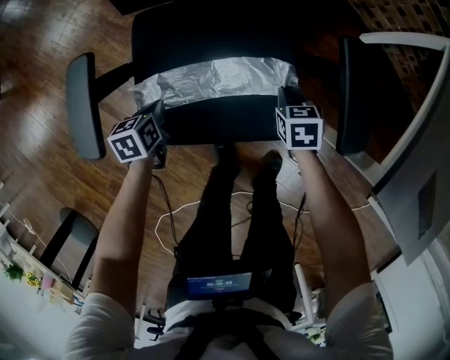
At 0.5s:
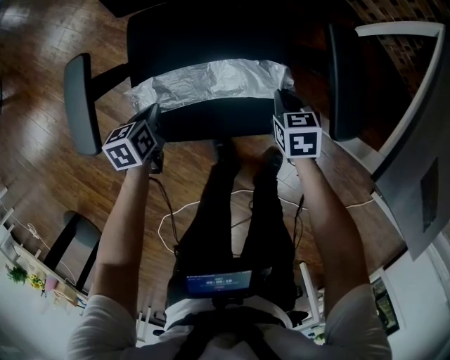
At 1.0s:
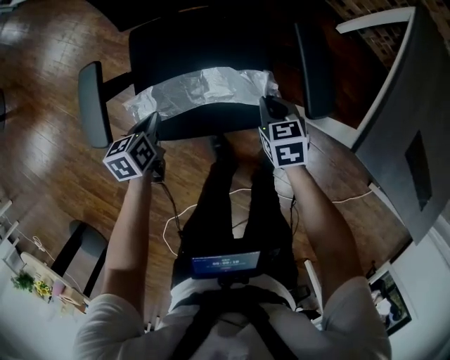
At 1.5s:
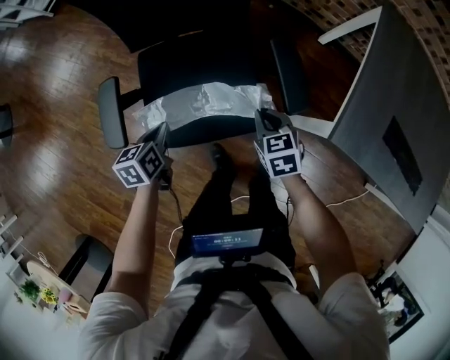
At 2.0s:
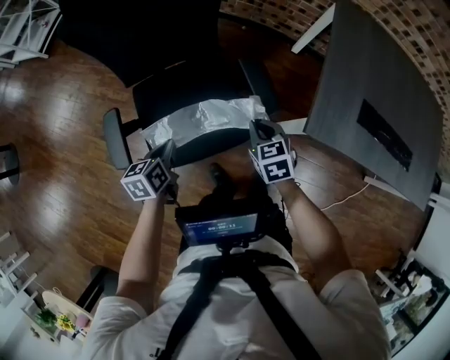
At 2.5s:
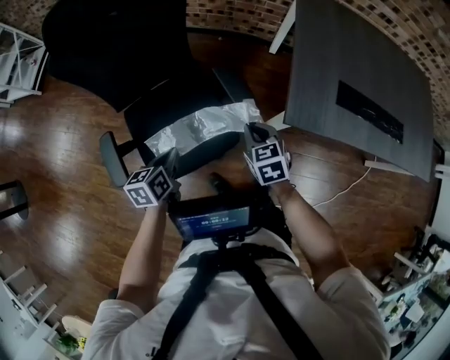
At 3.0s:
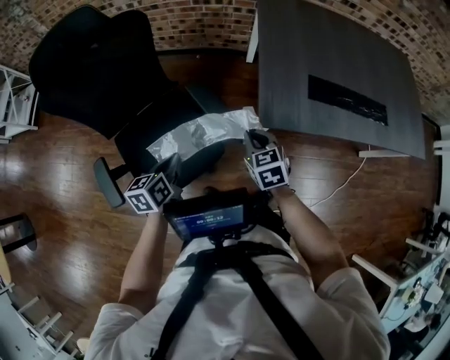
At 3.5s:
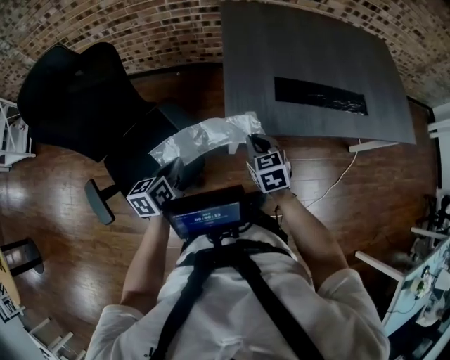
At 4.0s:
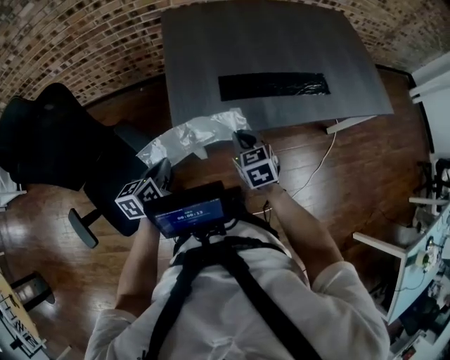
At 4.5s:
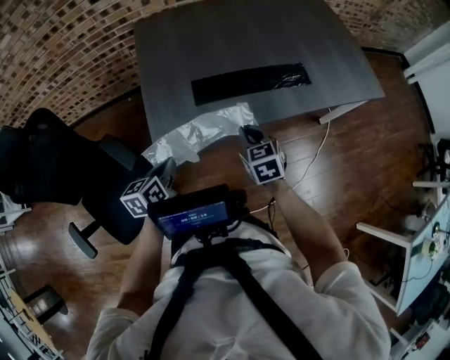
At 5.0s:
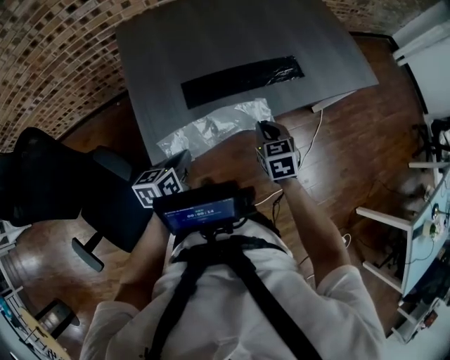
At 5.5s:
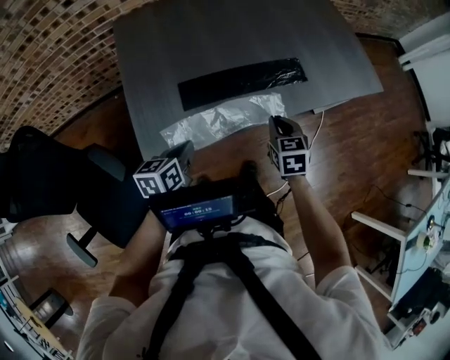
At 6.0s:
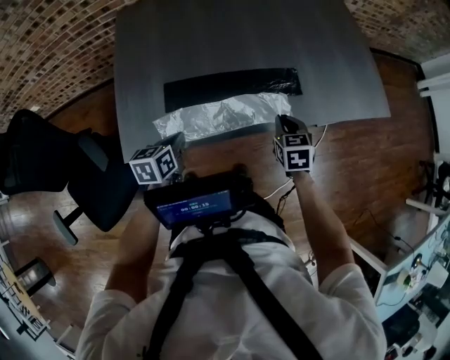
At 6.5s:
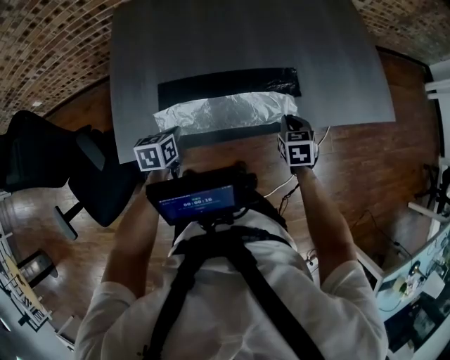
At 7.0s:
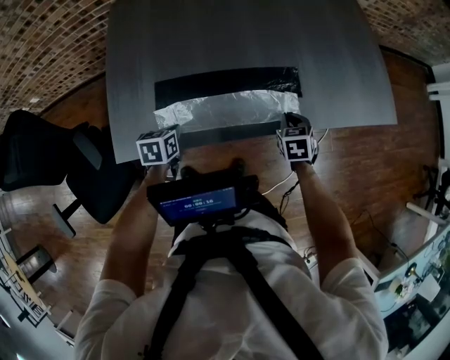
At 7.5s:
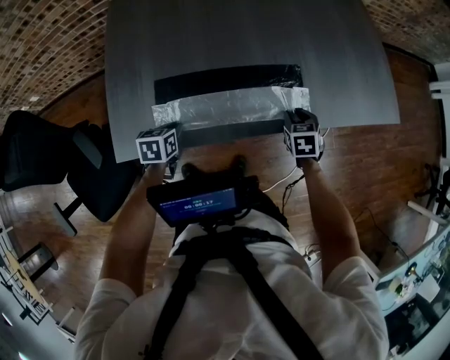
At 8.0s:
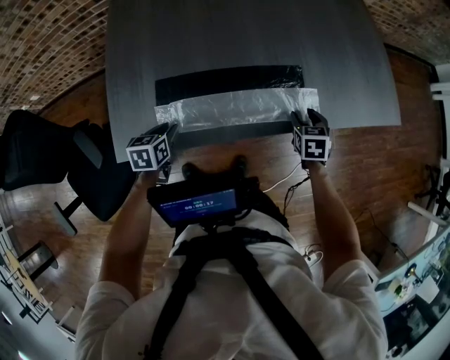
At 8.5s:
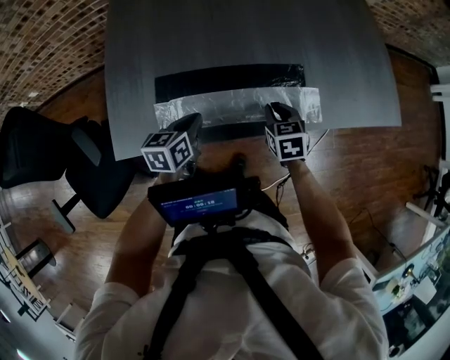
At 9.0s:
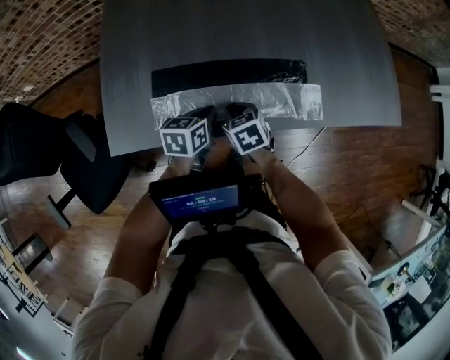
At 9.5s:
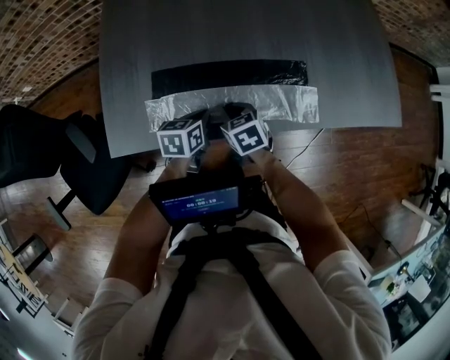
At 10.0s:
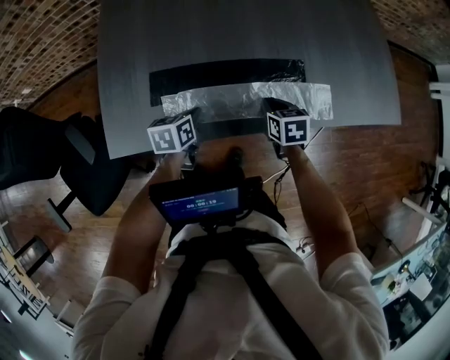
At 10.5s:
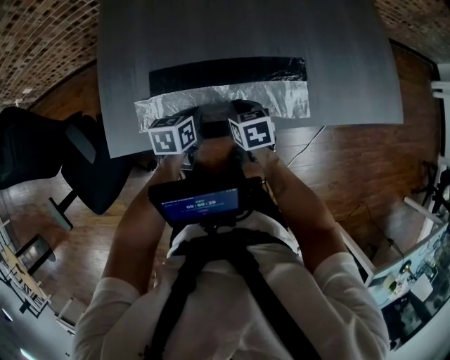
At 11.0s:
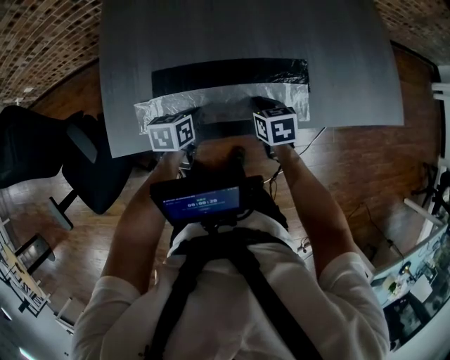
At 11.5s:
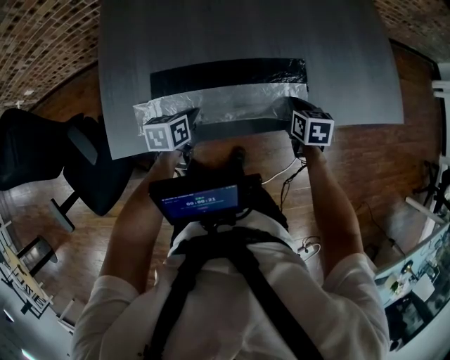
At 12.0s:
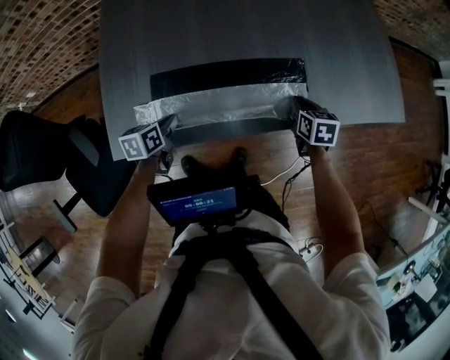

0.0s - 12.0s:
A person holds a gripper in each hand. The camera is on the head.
0.0s - 2.0s: The grippers both shift upward by some 25 cm. The left gripper changes its angle by some 20 degrees.
2.0s - 4.0s: The right gripper changes place by roughly 40 cm, and rotates roughly 30 degrees; the left gripper moves about 40 cm, and turns by about 30 degrees.
4.0s - 6.0s: Both grippers travel together to the right and forward, roughly 35 cm.
6.0s - 8.0s: The right gripper goes some 10 cm to the right, downward and forward, and opens up. The left gripper heads downward, covering roughly 5 cm, and opens.
8.0s - 10.0s: The right gripper moves to the left, roughly 10 cm, and closes its fingers. Meanwhile the left gripper goes approximately 10 cm to the right, and closes its fingers.
10.0s - 12.0s: The left gripper heads to the left, covering roughly 10 cm; the right gripper moves to the right, roughly 10 cm.

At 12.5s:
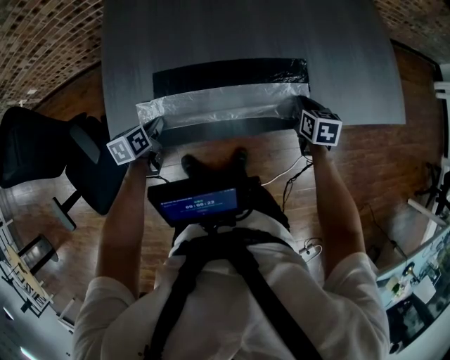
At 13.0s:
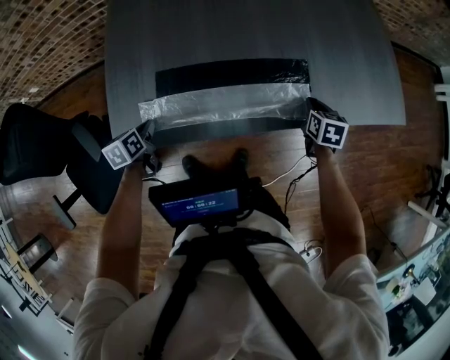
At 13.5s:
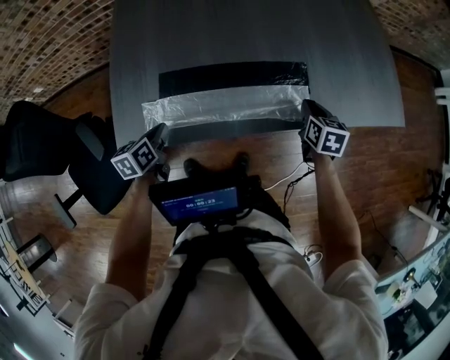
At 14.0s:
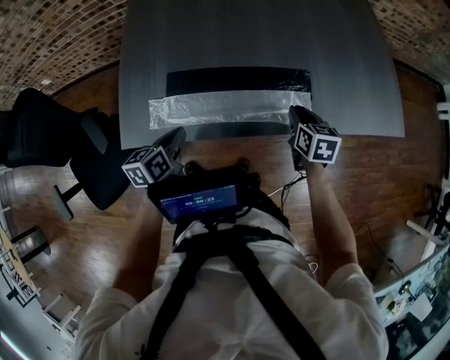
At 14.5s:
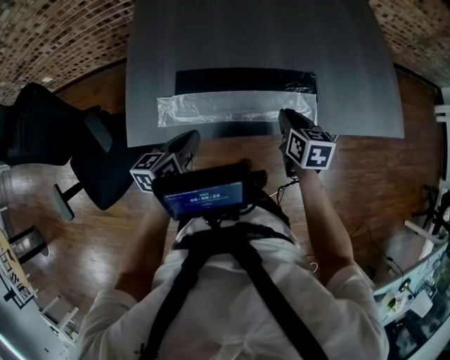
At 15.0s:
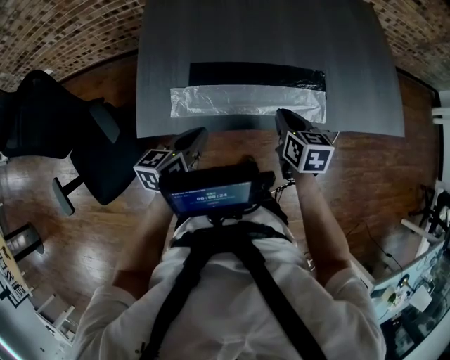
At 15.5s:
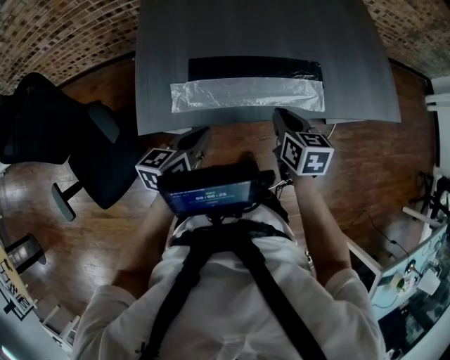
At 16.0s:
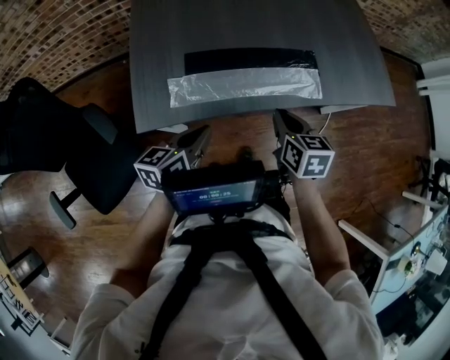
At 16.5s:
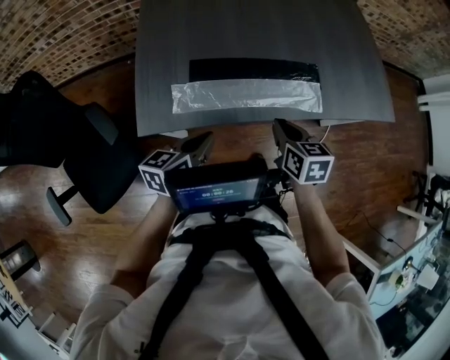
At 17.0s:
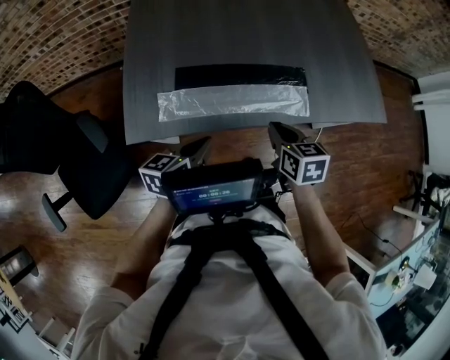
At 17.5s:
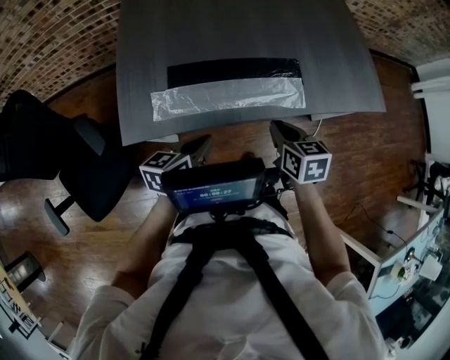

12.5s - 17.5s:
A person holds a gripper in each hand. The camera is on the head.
12.5s - 15.0s: The right gripper heads to the left, upward and backward, covering about 20 cm, while the left gripper shifts roughly 20 cm upward, backward and to the right, and rotates some 20 degrees.
15.0s - 17.5s: The left gripper moves to the right, roughly 5 cm. The right gripper moves backward, some 5 cm.

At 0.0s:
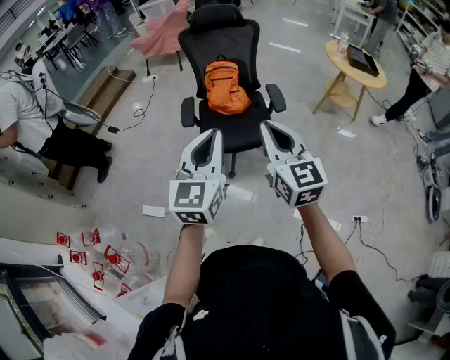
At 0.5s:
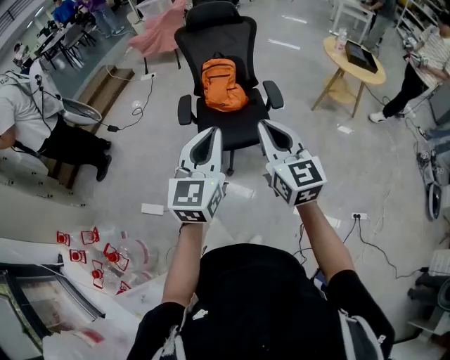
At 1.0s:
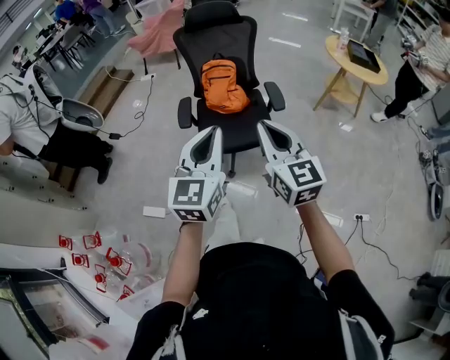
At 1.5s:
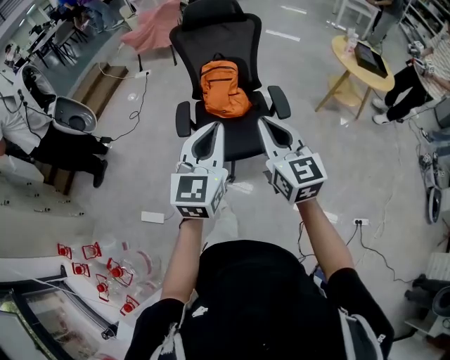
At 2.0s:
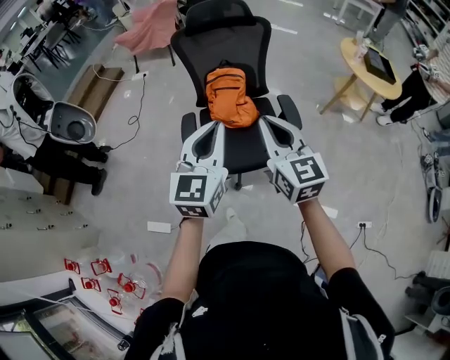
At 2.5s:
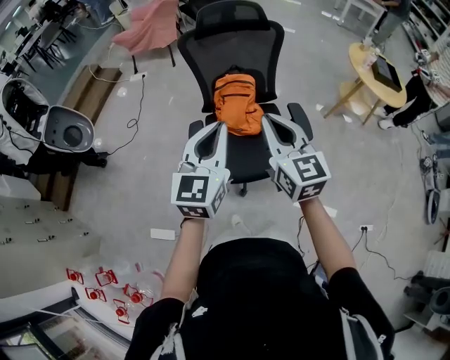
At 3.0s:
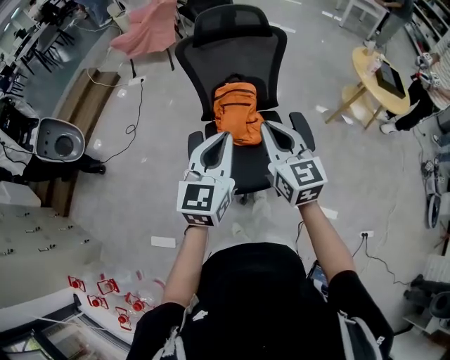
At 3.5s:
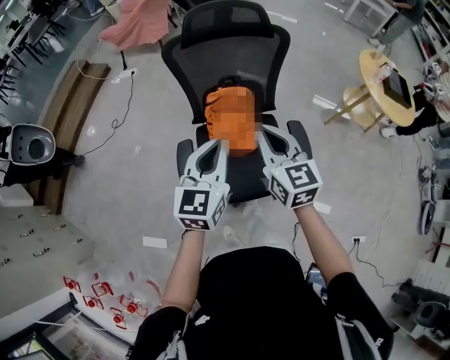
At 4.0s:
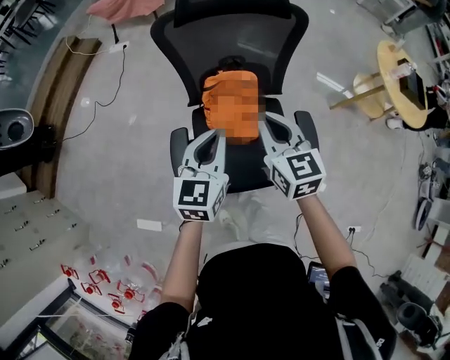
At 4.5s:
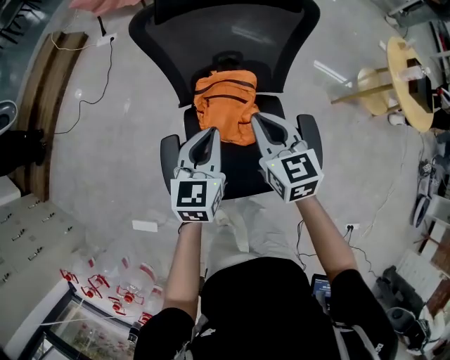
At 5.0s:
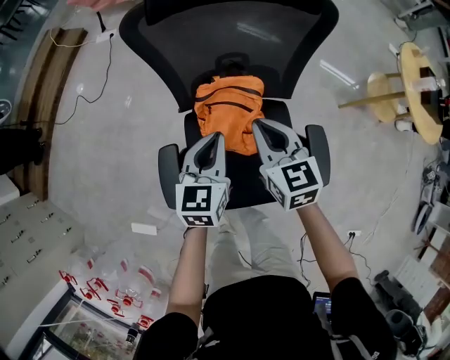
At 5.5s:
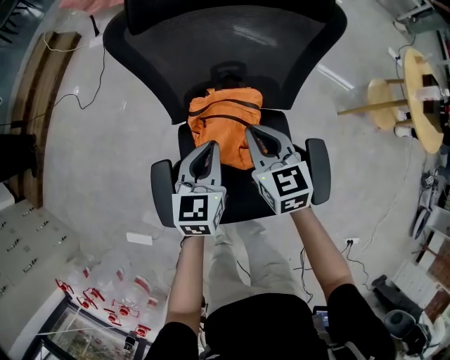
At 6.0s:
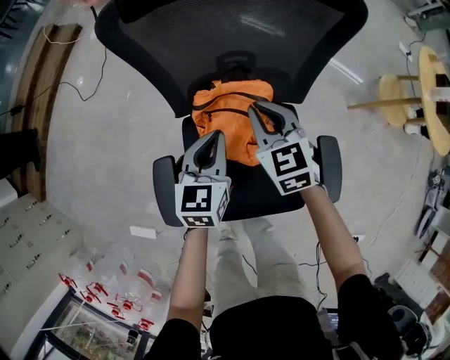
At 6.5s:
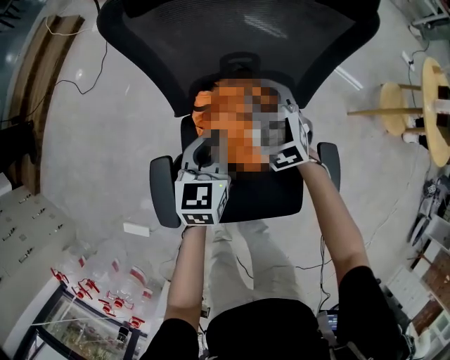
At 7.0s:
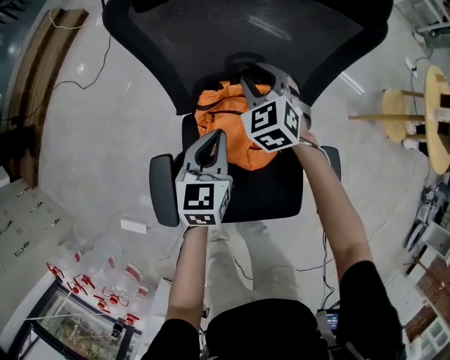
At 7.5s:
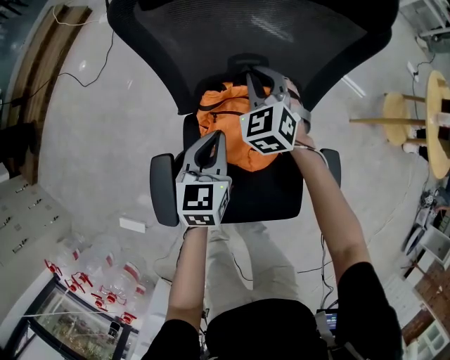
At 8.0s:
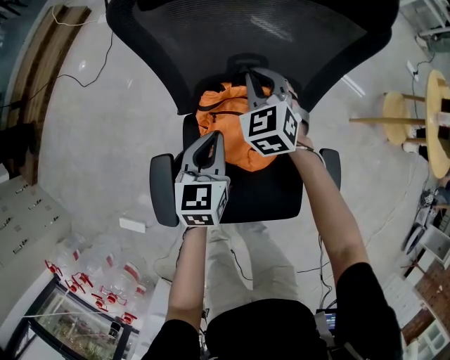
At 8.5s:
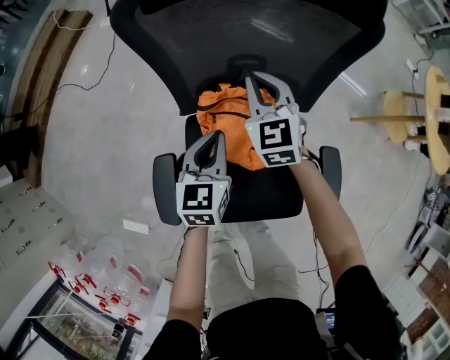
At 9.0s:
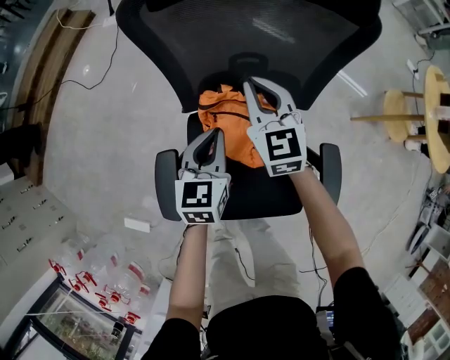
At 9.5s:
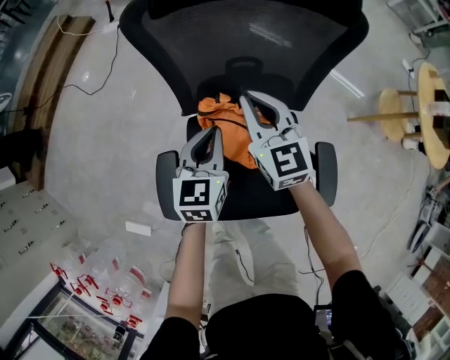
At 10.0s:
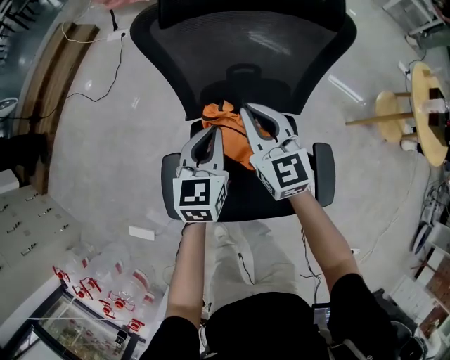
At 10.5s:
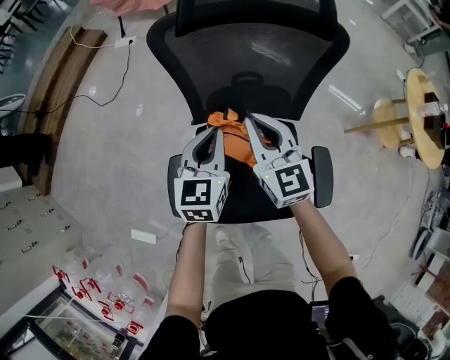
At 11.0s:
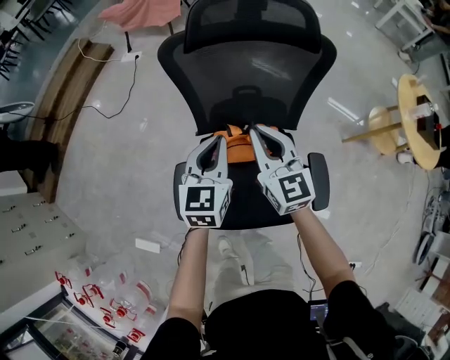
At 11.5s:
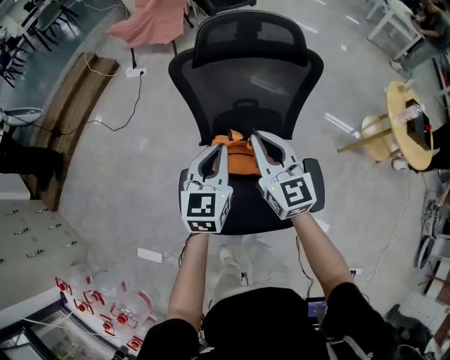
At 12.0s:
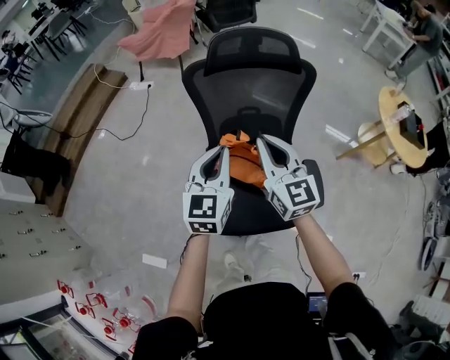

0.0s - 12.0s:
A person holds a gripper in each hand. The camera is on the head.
0.0s - 2.0s: The grippers both shift forward by about 25 cm.
2.0s - 4.0s: The two grippers go approximately 35 cm forward and downward.
4.0s - 6.0s: The two grippers go roughly 25 cm downward and forward.
6.0s - 8.0s: The right gripper is displaced forward by approximately 10 cm, turns by some 20 degrees, and opens and closes again.
8.0s - 10.0s: The right gripper goes approximately 15 cm upward and backward, and changes its angle by about 40 degrees; the left gripper goes approximately 10 cm upward.
10.0s - 12.0s: The grippers both shift upward and backward by some 25 cm.
